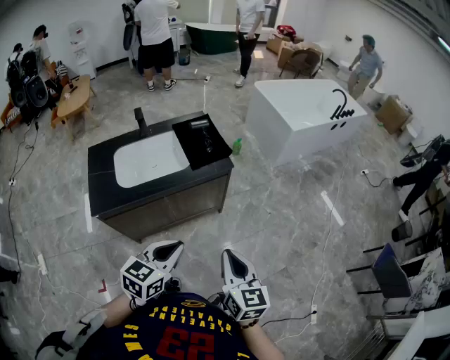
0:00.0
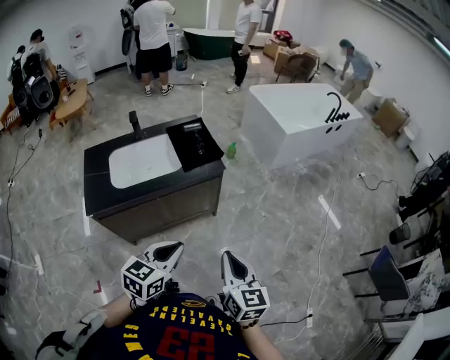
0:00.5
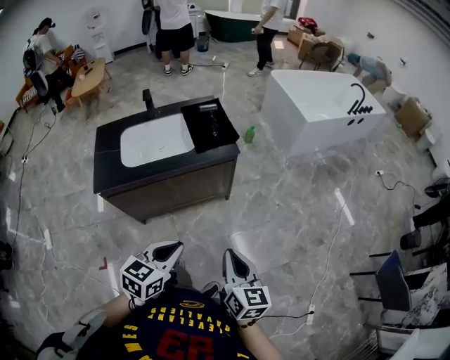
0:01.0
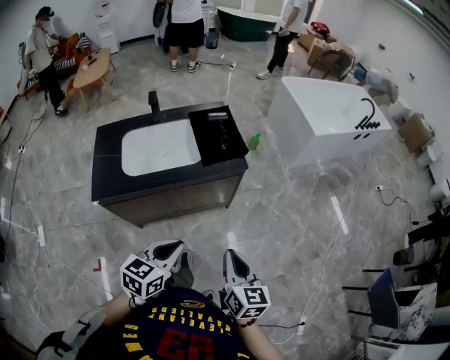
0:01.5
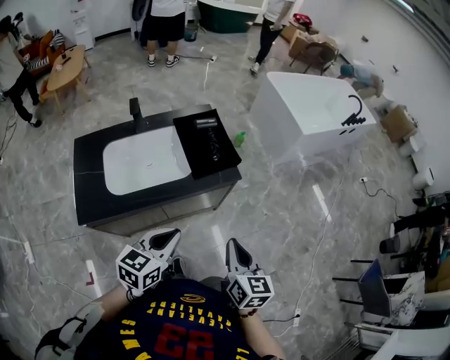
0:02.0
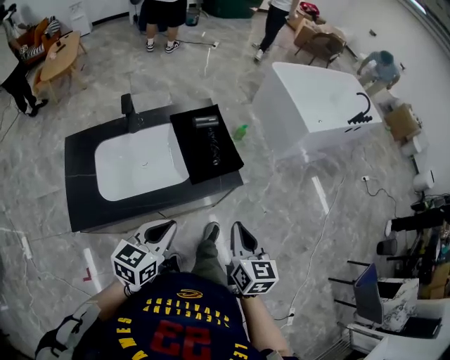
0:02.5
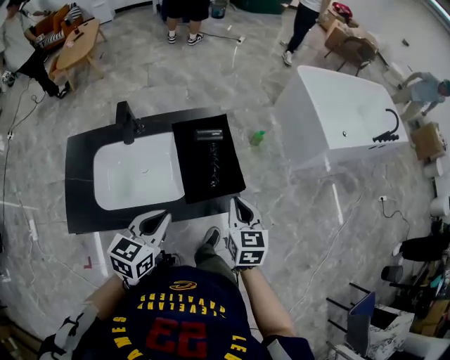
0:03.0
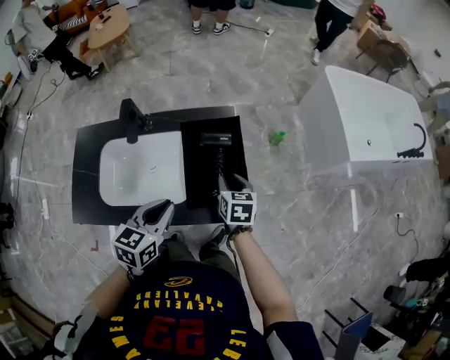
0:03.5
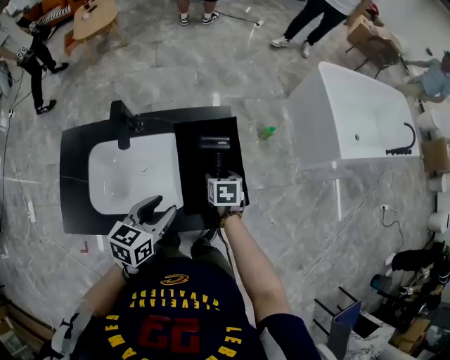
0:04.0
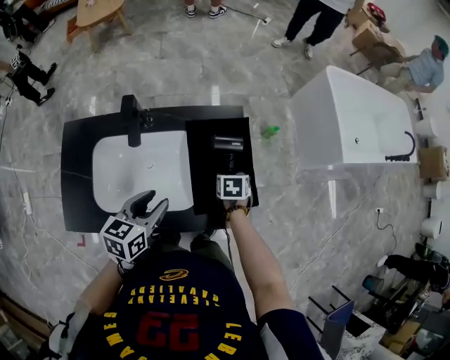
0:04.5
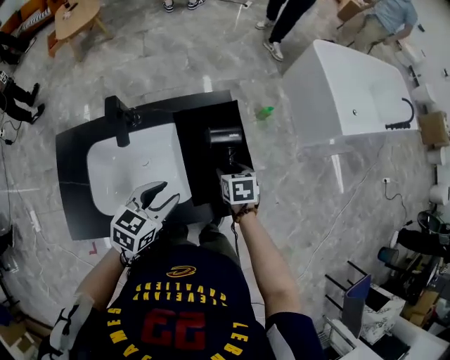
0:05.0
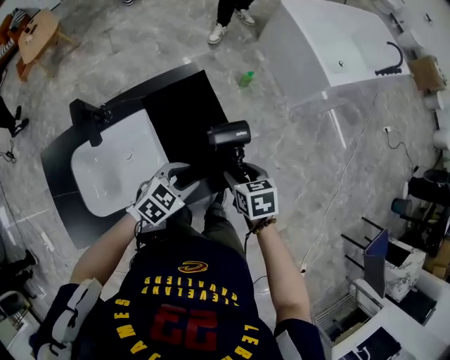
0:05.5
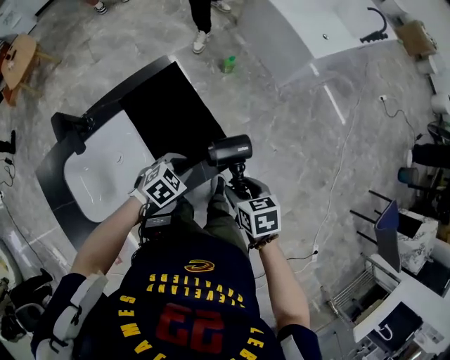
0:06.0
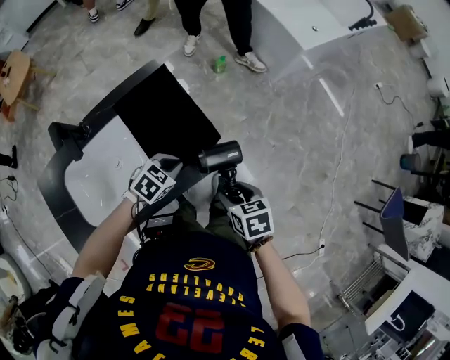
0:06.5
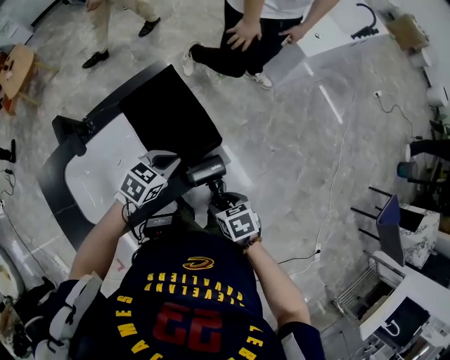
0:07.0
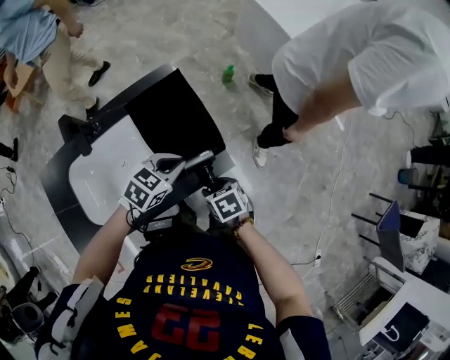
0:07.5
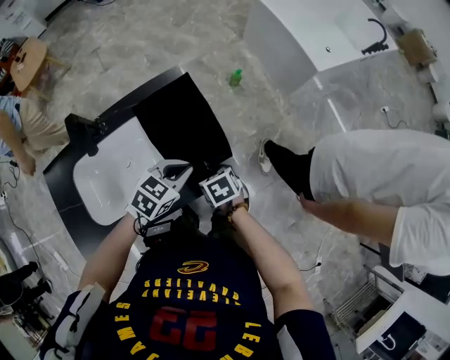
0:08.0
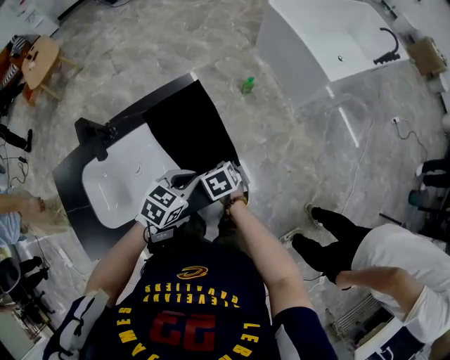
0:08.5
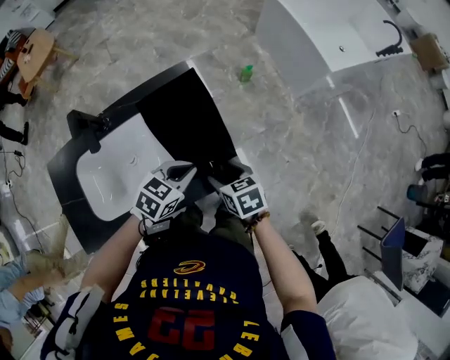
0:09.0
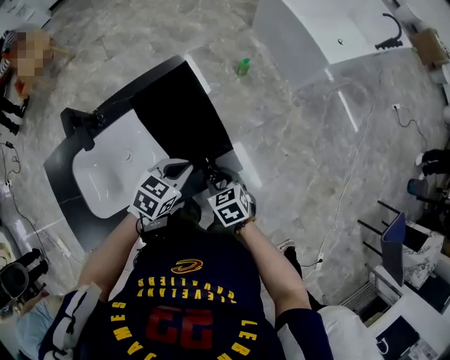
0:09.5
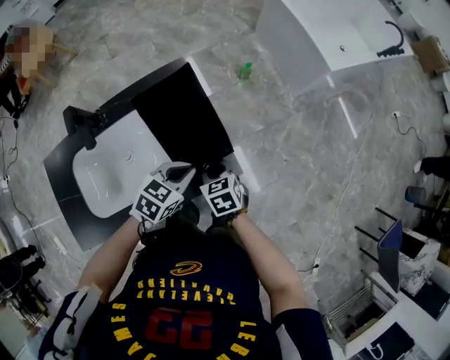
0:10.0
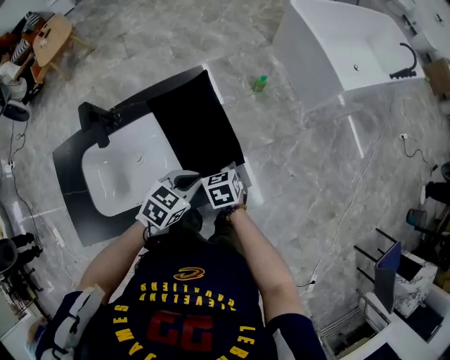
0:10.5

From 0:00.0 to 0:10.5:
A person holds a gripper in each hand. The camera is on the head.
From 0:00.0 to 0:02.0: The left gripper travels forward and to the left by approximately 15 cm. The right gripper is displaced forward by roughly 15 cm.
From 0:02.0 to 0:04.0: The left gripper heads forward, covering roughly 30 cm, changes its angle by some 20 degrees, and opens. The right gripper moves forward and downward, approximately 50 cm, angles its fingers downward, by roughly 40 degrees, and opens.
From 0:04.0 to 0:06.5: The left gripper goes approximately 15 cm downward, rotates roughly 60 degrees, and closes its fingers, while the right gripper changes place by about 25 cm.
From 0:06.5 to 0:08.5: The right gripper is displaced to the left, forward and downward by approximately 20 cm. Meanwhile the left gripper goes roughly 10 cm upward, and rotates about 20 degrees.
From 0:08.5 to 0:10.5: The right gripper reaches approximately 5 cm backward, then returns, and closes its fingers.

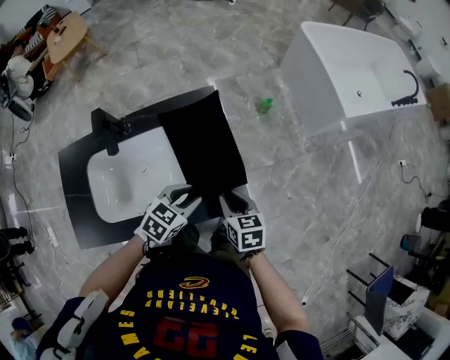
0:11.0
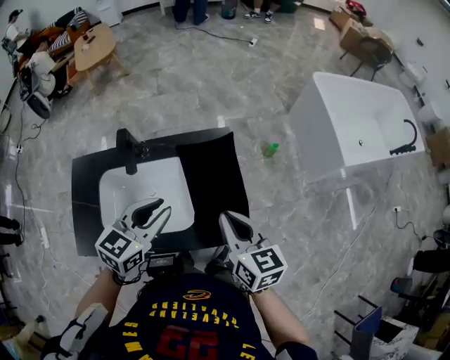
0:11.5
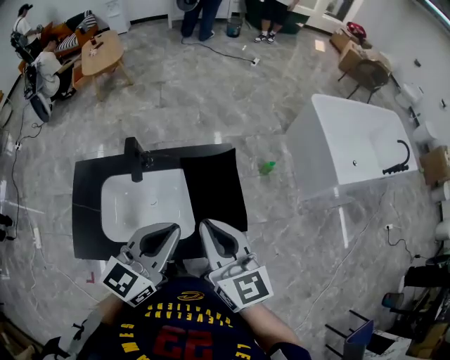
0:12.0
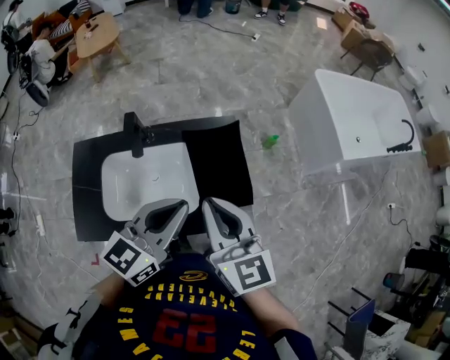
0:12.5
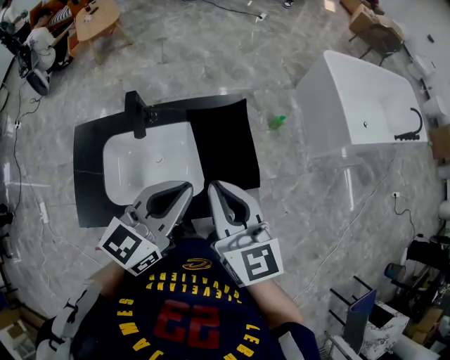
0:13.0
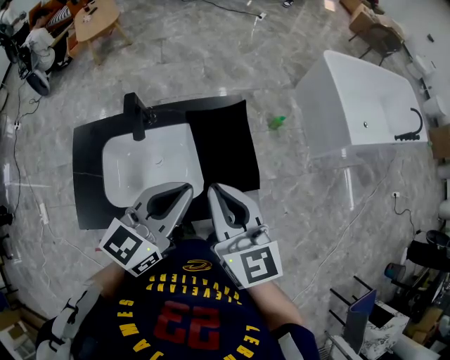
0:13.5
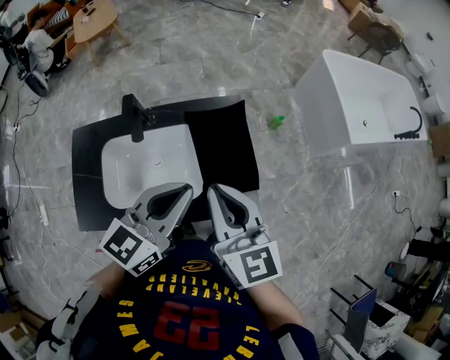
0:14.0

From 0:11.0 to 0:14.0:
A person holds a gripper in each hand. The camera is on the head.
From 0:11.0 to 0:12.5: Both grippers move upward, some 30 cm. The right gripper tips its fingers upward by some 40 degrees, and closes its fingers. The left gripper tilts its fingers roughly 40 degrees upward, and closes.
From 0:12.5 to 0:14.0: The grippers stay close to where they were, moving slightly.

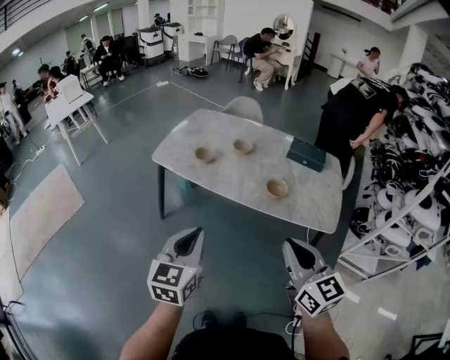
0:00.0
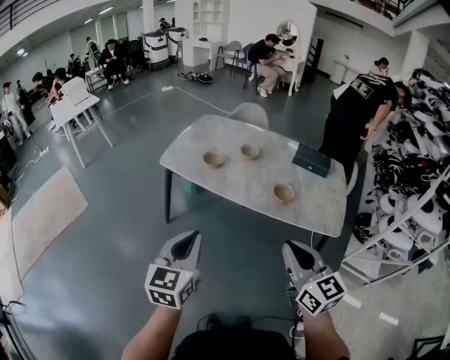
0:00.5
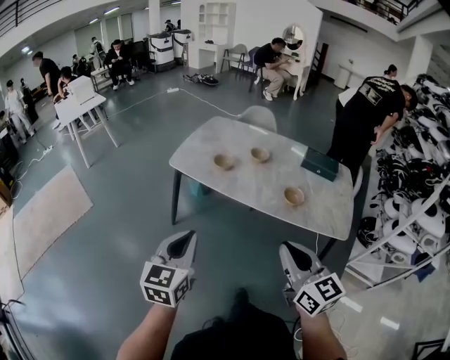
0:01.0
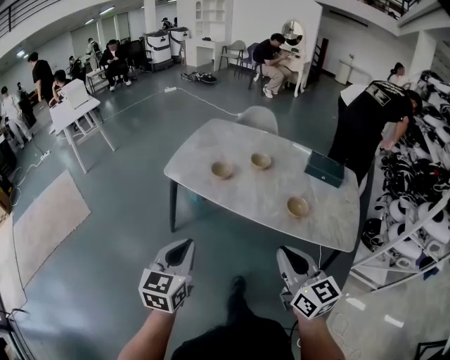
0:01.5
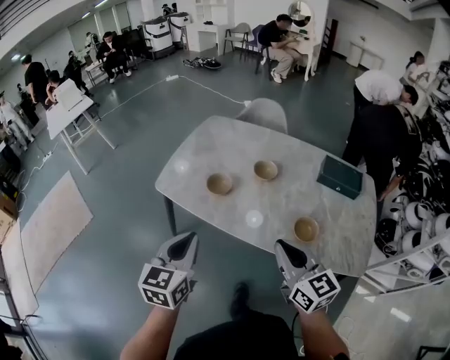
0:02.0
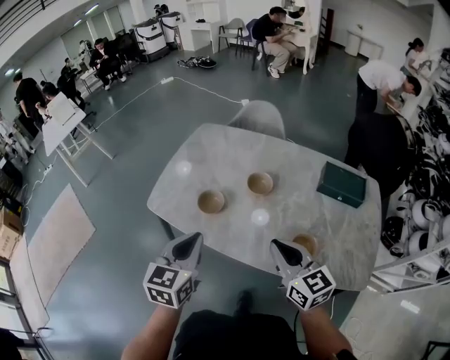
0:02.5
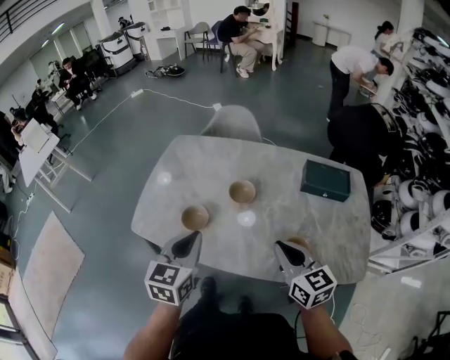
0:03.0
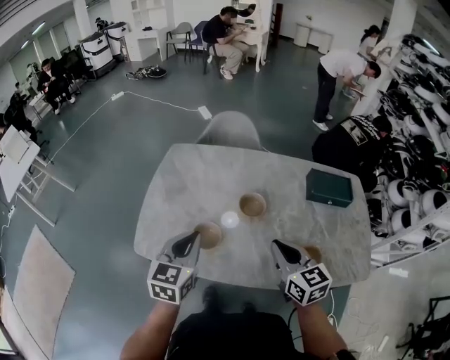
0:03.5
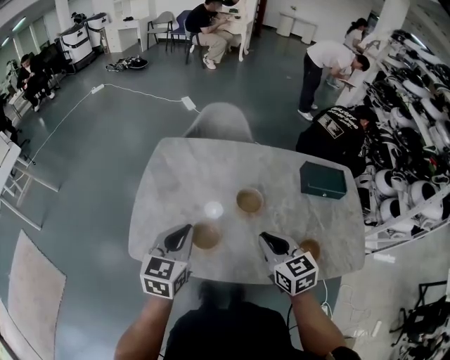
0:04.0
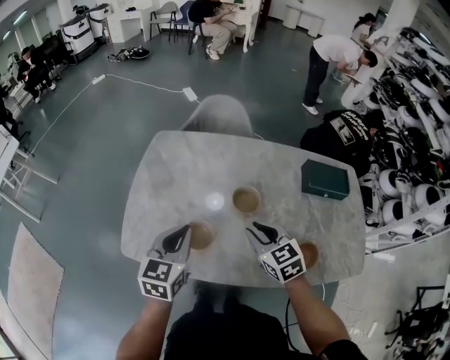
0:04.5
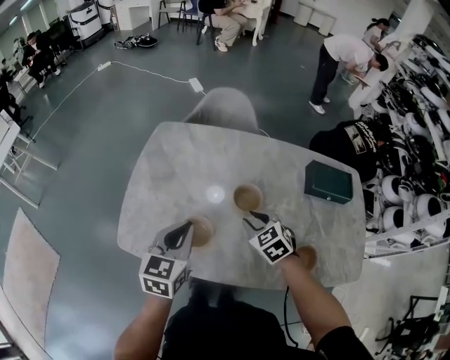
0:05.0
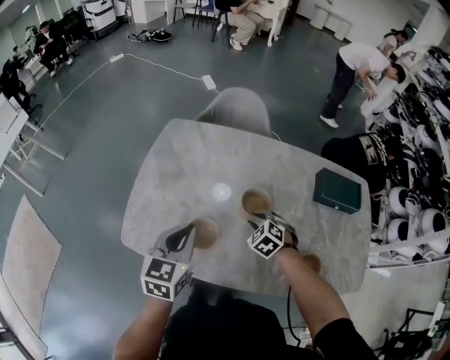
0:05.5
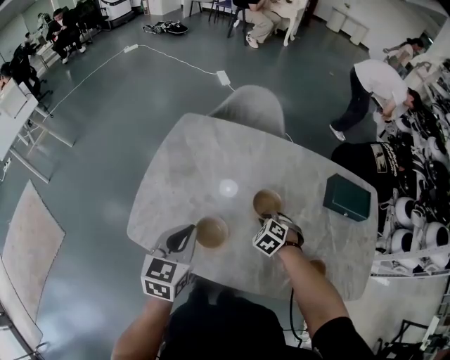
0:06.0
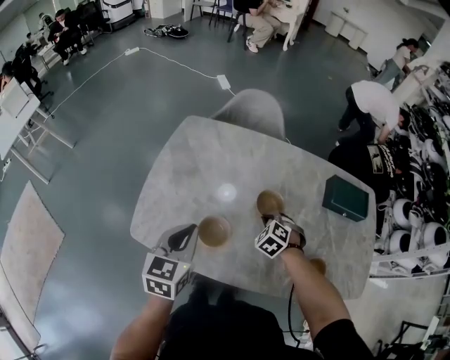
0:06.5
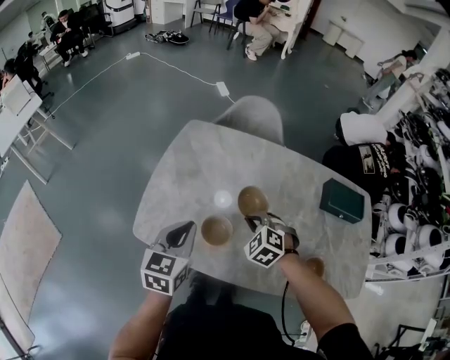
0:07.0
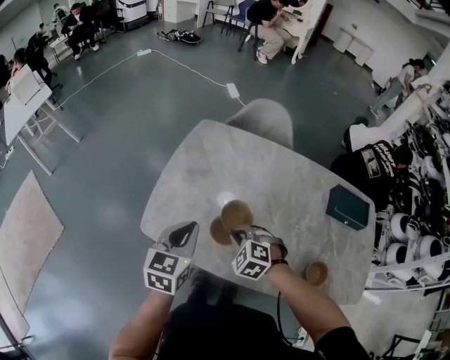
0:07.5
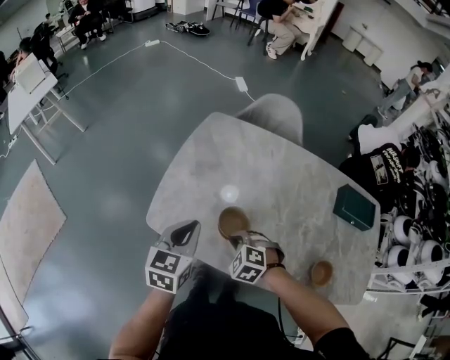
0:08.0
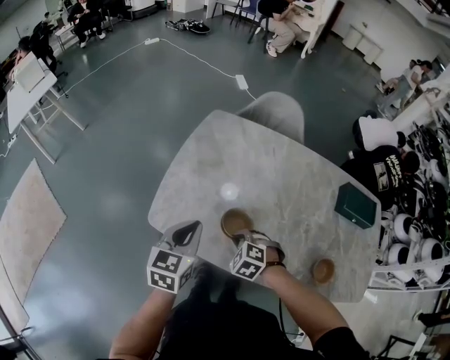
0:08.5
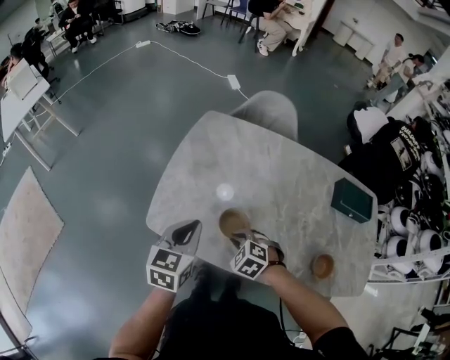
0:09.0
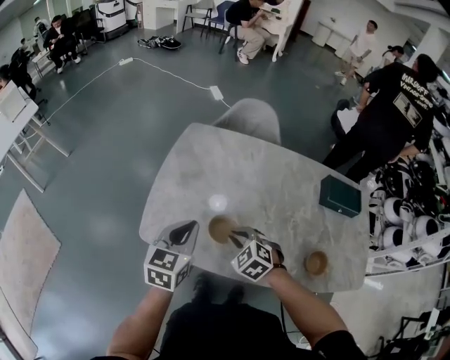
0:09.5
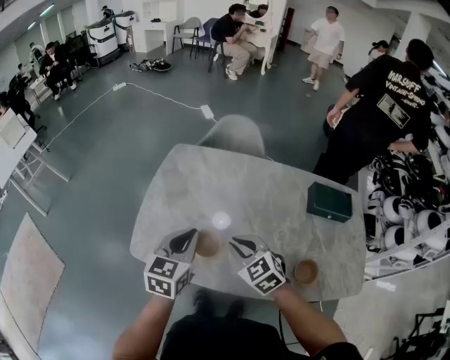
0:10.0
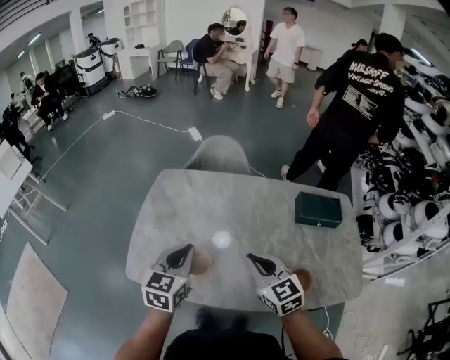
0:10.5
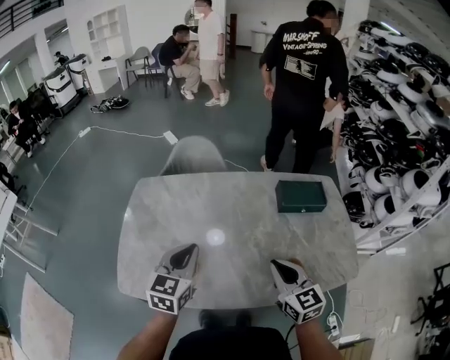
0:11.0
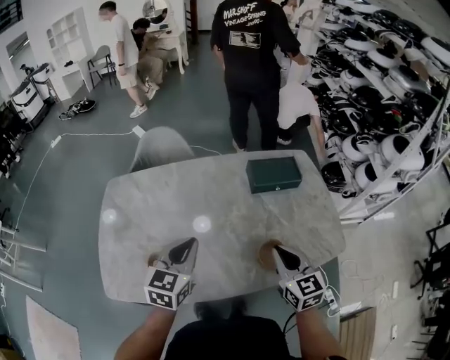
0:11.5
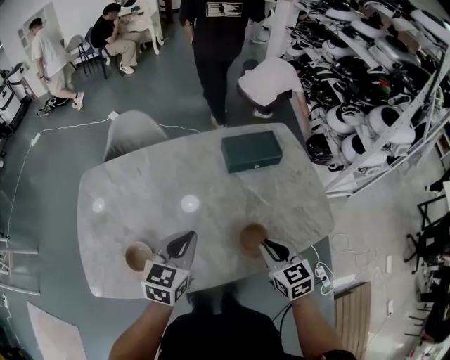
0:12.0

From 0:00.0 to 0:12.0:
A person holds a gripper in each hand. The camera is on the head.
From 0:00.0 to 0:02.0: The grippers both shift forward by some 30 cm.
From 0:02.0 to 0:04.0: The two grippers go approximately 30 cm forward. The right gripper turns by approximately 30 degrees; the left gripper rotates approximately 20 degrees.
From 0:04.0 to 0:06.0: The left gripper is displaced downward by about 5 cm, while the right gripper shifts some 30 cm downward and forward, and angles its fingers downward, by about 40 degrees.
From 0:06.0 to 0:08.0: The left gripper travels to the left by some 10 cm. The right gripper goes about 25 cm to the left and backward, and swivels about 20 degrees.
From 0:08.0 to 0:10.0: The left gripper is displaced to the right and upward by about 10 cm, while the right gripper goes about 20 cm upward and to the right, and rotates some 40 degrees.
From 0:10.0 to 0:12.0: The left gripper ends up some 30 cm from where it was, and turns by about 30 degrees. The right gripper moves about 40 cm, and rotates some 50 degrees.

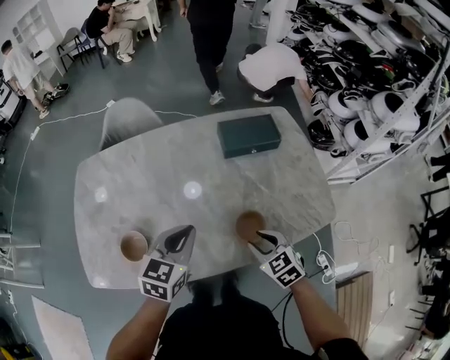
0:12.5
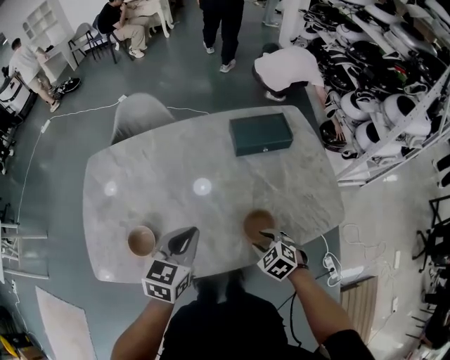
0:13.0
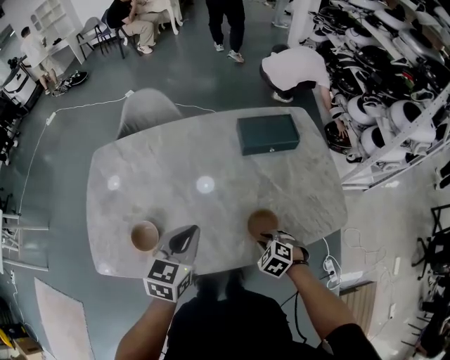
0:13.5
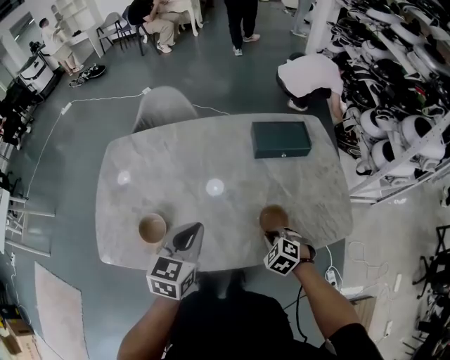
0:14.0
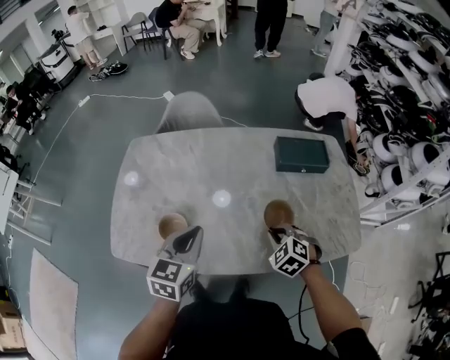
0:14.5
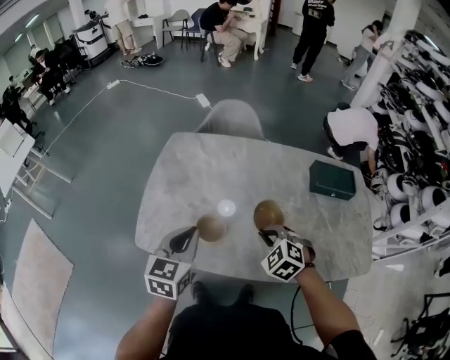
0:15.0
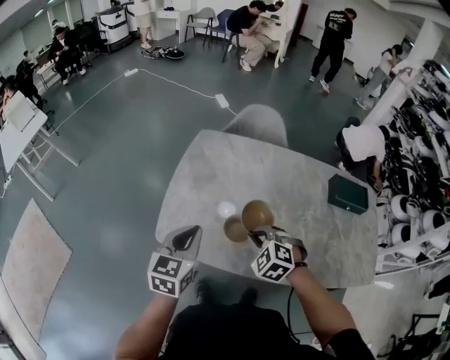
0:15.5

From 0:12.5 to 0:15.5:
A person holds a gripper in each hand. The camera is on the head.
From 0:12.5 to 0:14.0: The right gripper shifts approximately 10 cm downward, rotates roughly 30 degrees, and closes its fingers.
From 0:14.0 to 0:15.5: The two grippers travel together, to the left, some 40 cm. The left gripper changes its angle by roughly 20 degrees. Meanwhile the right gripper rotates approximately 30 degrees.
